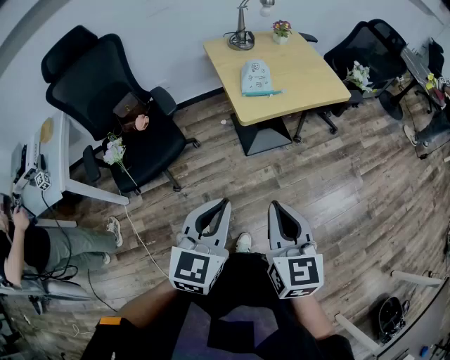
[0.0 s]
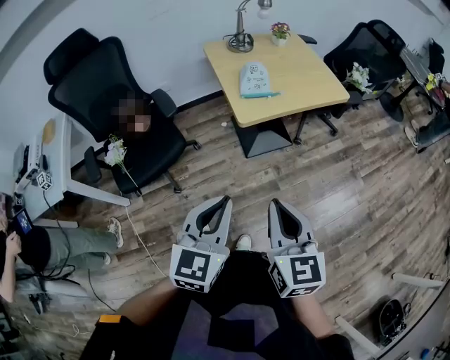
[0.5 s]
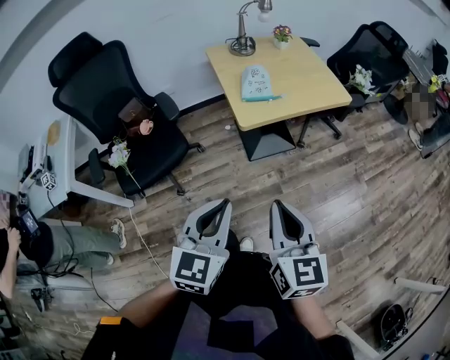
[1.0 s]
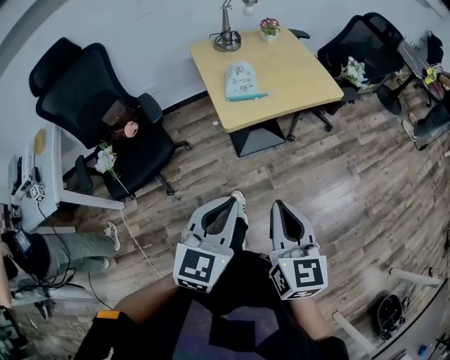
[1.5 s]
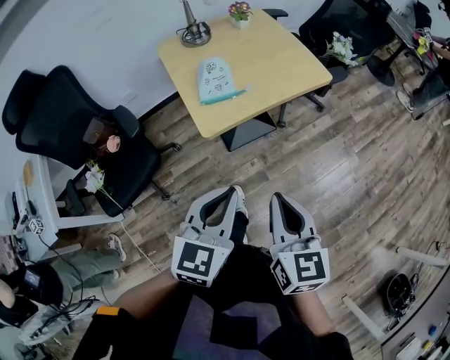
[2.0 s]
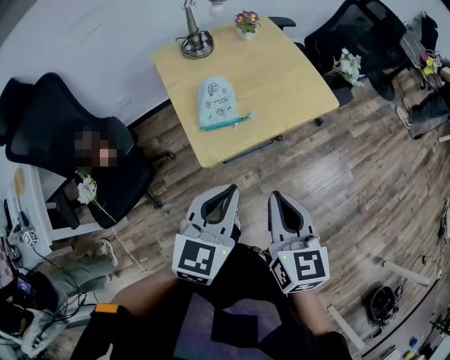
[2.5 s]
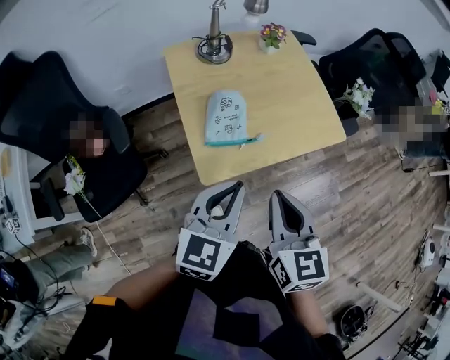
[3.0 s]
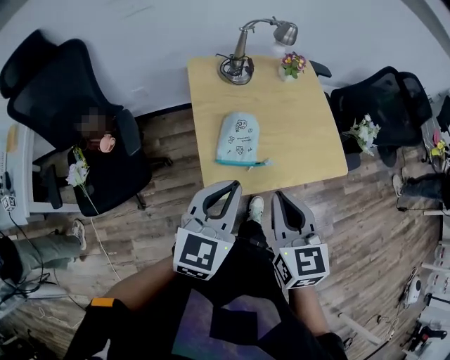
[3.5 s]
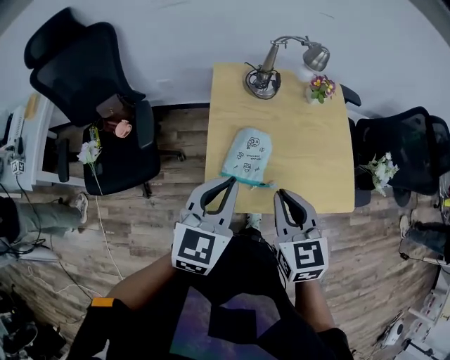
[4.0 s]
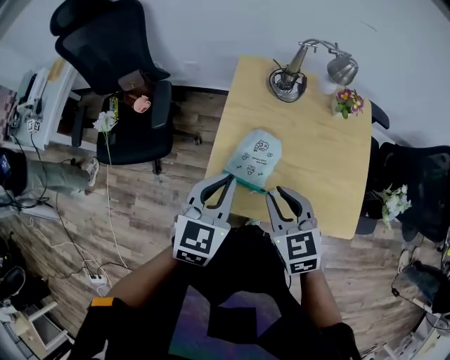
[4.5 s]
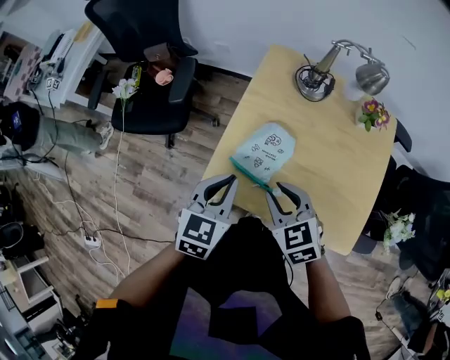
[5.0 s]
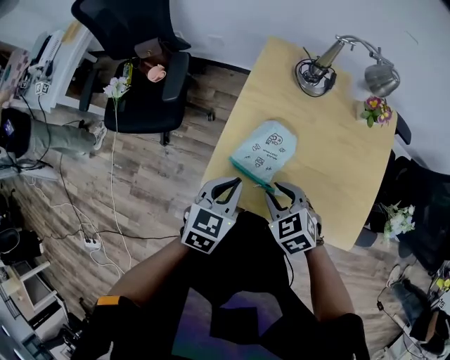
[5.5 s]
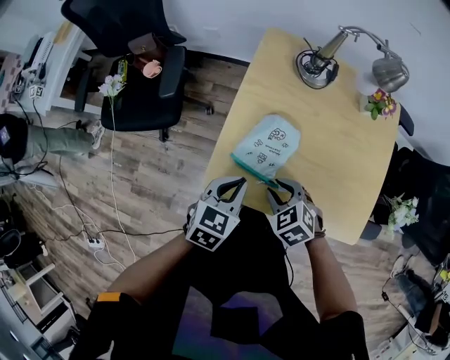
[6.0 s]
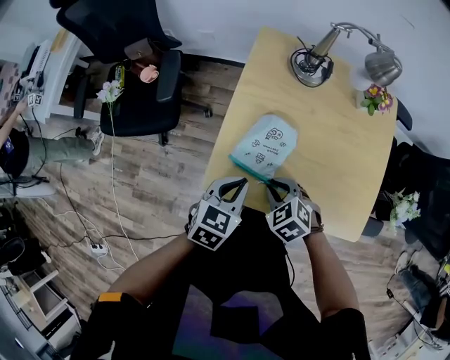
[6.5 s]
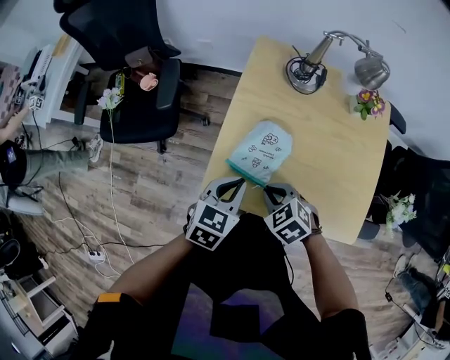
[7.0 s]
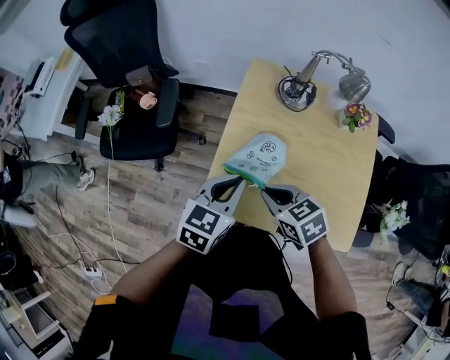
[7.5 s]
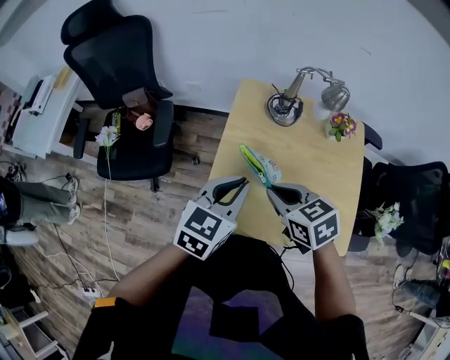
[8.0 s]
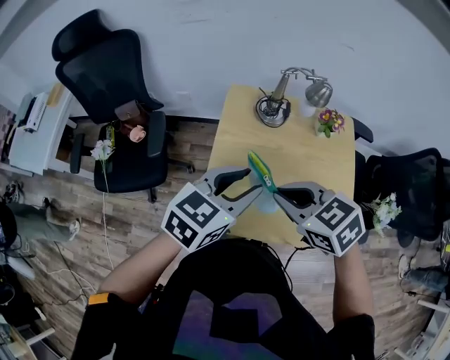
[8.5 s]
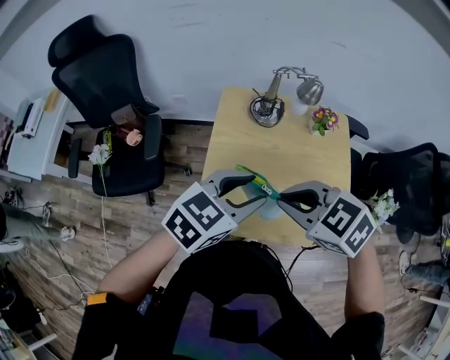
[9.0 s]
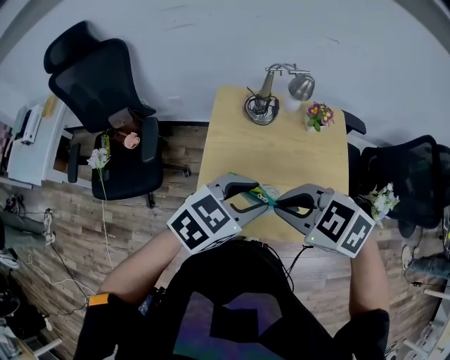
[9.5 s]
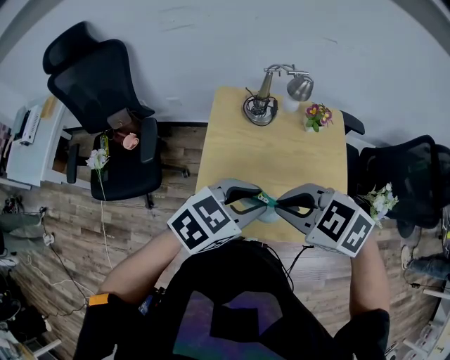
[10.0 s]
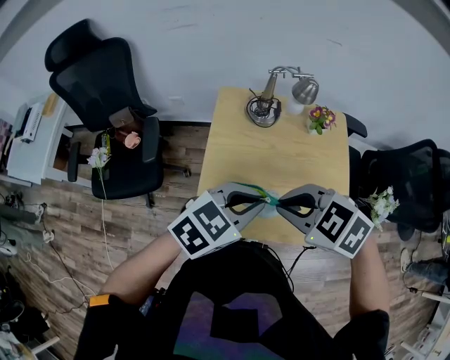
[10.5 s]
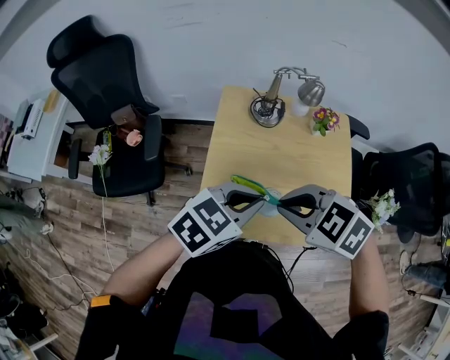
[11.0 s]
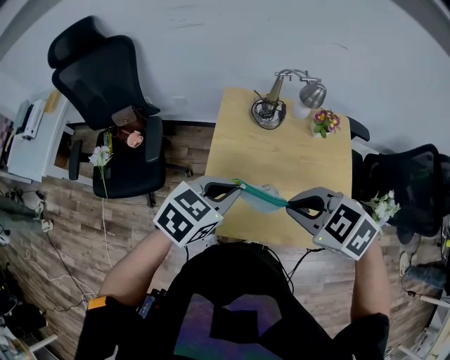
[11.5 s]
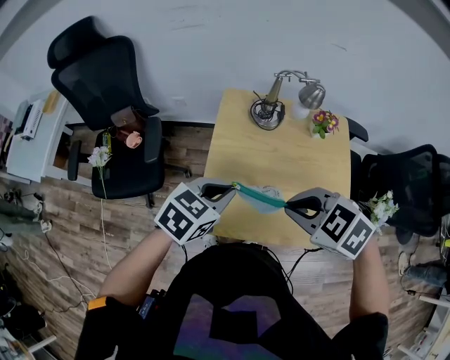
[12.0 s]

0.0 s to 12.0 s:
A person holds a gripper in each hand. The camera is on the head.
0.0 to 2.0 s: The grippers both shift forward and to the right by some 15 cm.
2.0 to 4.0 s: The left gripper shifts by roughly 30 cm, and swivels about 30 degrees, while the right gripper changes place by approximately 35 cm, and swivels approximately 40 degrees.
4.0 to 6.0 s: Both grippers travel together downward, roughly 20 cm. The right gripper points its fingers about 30 degrees further downward, and opens its fingers. Meanwhile the left gripper turns by about 30 degrees.
6.0 to 8.0 s: The right gripper heads upward, covering approximately 15 cm, turns by roughly 30 degrees, and closes up, while the left gripper heads upward and forward, covering about 15 cm.
8.0 to 10.0 s: The left gripper shifts by about 10 cm, changes its angle by approximately 30 degrees, and opens its fingers. The right gripper goes approximately 10 cm upward, and swivels about 30 degrees.
10.0 to 12.0 s: The left gripper changes place by roughly 10 cm, and closes.

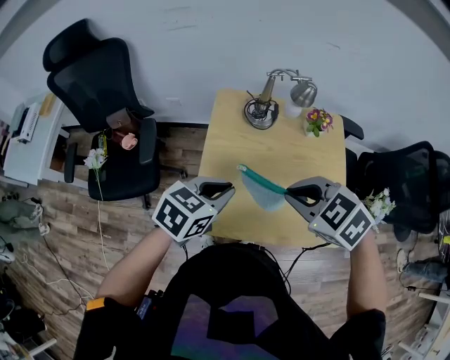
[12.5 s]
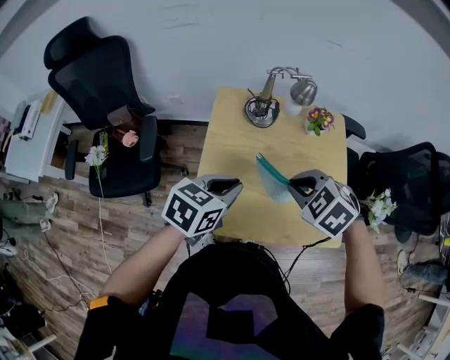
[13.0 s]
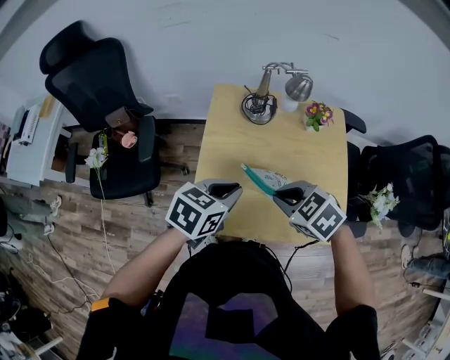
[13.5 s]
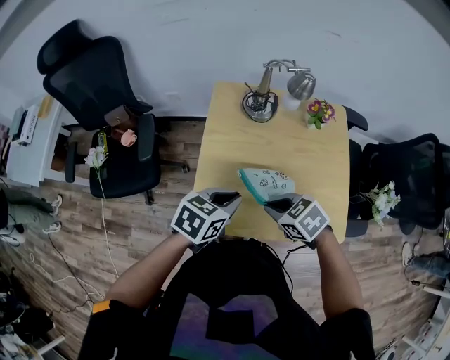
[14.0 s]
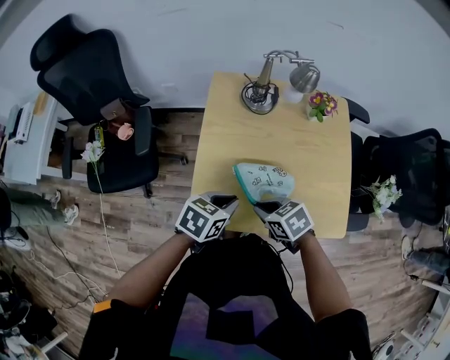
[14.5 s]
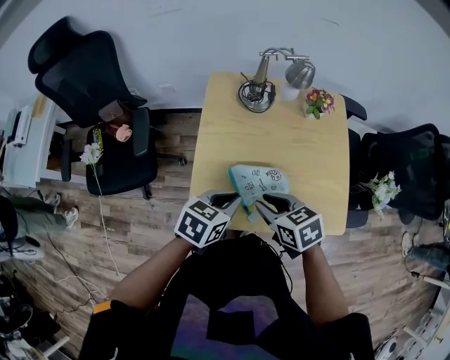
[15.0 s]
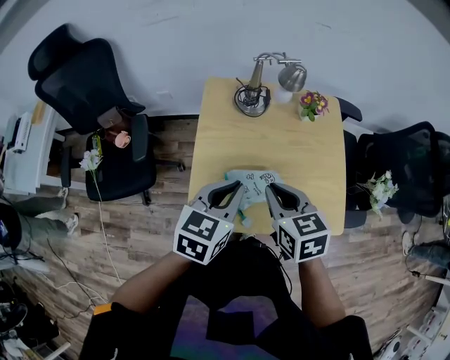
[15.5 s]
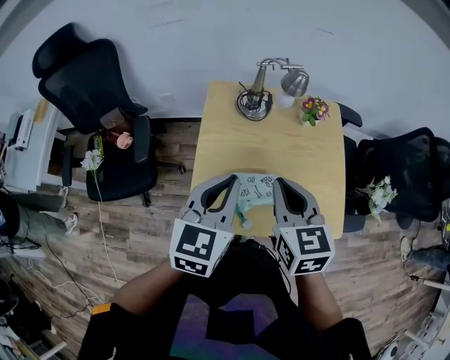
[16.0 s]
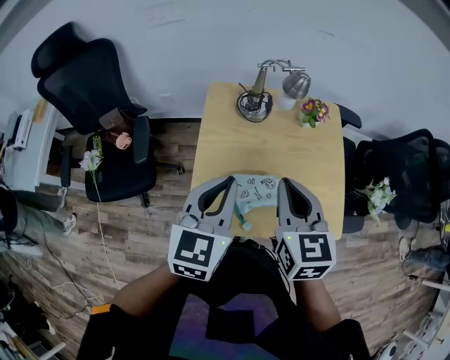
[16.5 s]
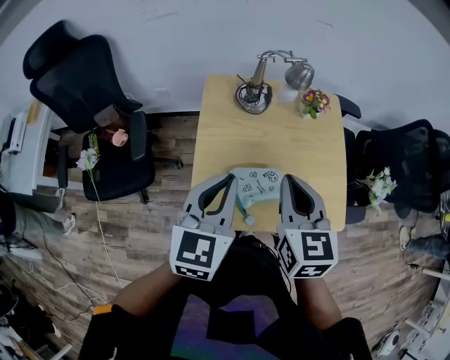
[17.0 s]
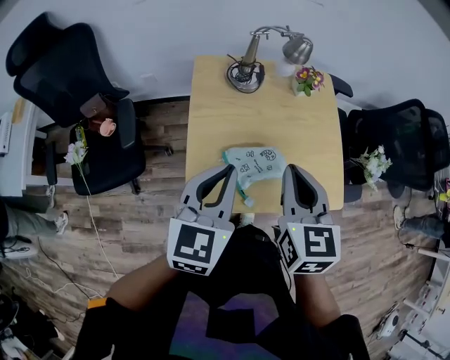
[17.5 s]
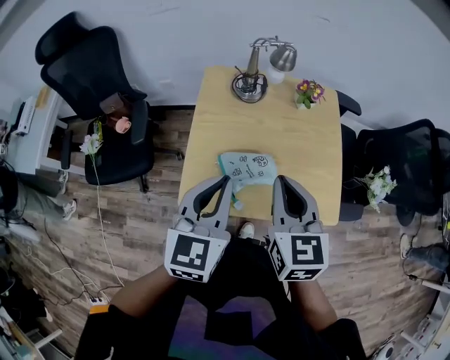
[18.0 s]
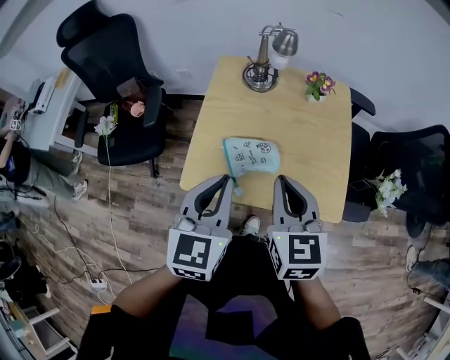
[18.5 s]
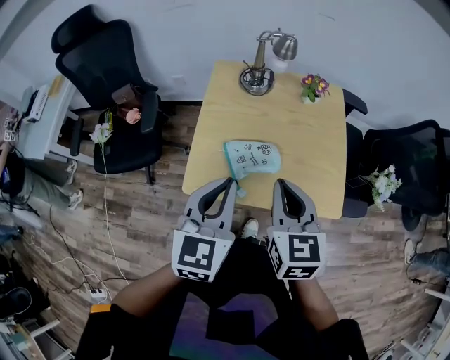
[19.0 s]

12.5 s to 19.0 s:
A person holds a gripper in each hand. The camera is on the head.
12.5 to 14.5 s: The right gripper is displaced downward by about 20 cm, and turns by about 30 degrees; the left gripper moves downward, approximately 10 cm.
14.5 to 17.0 s: The two grippers go about 20 cm upward. The right gripper rotates roughly 60 degrees, and opens and closes again, while the left gripper changes its angle by about 40 degrees.
17.0 to 19.0 s: The left gripper travels backward and to the right by approximately 10 cm. Meanwhile the right gripper shifts some 10 cm backward.

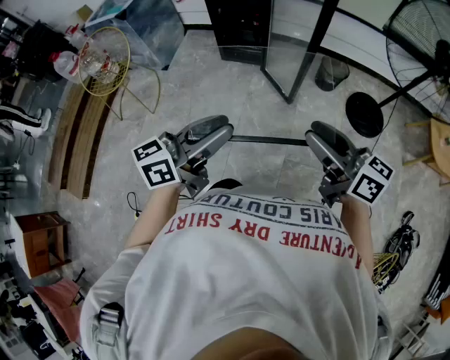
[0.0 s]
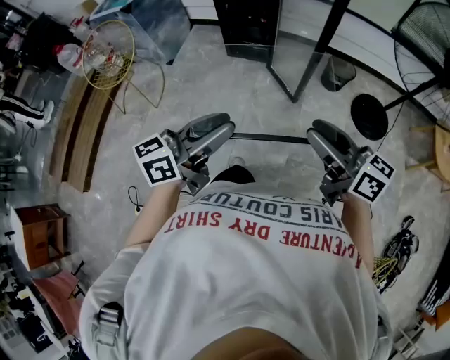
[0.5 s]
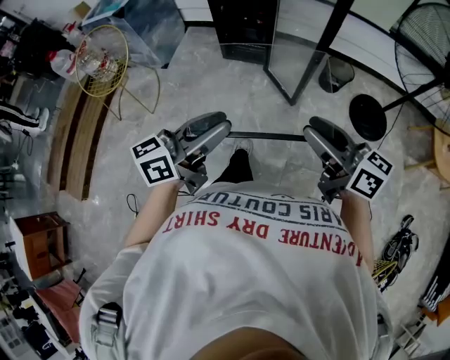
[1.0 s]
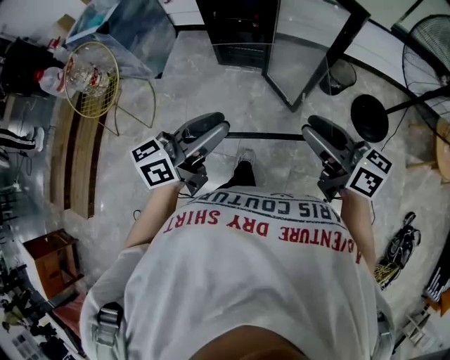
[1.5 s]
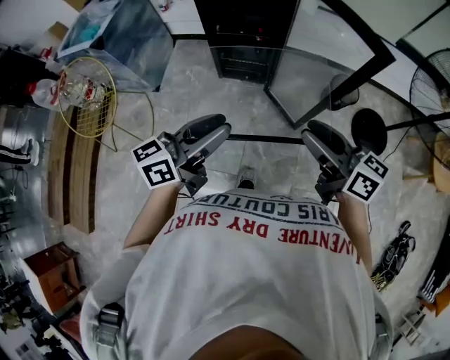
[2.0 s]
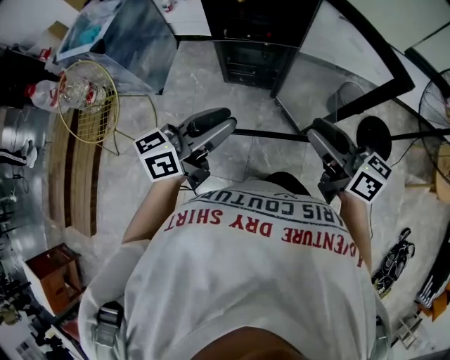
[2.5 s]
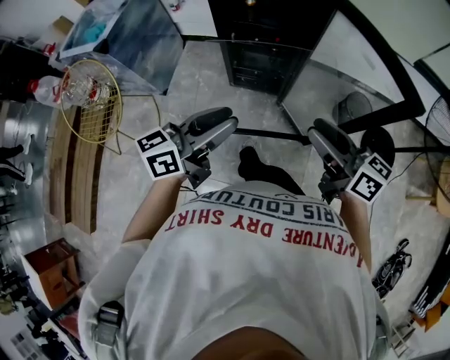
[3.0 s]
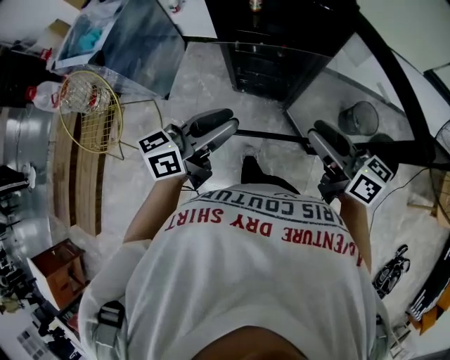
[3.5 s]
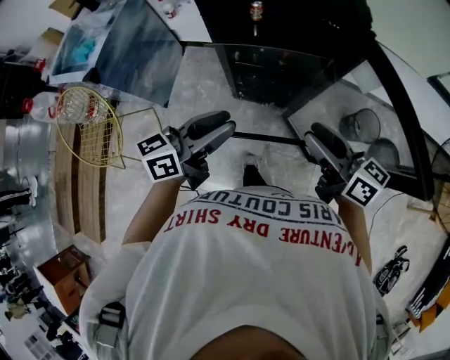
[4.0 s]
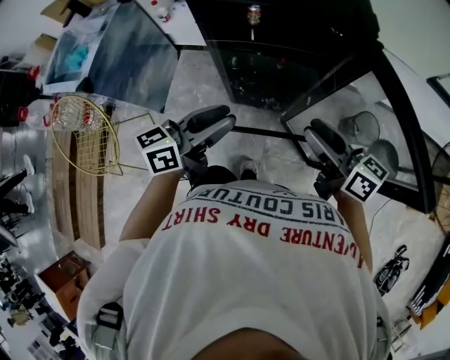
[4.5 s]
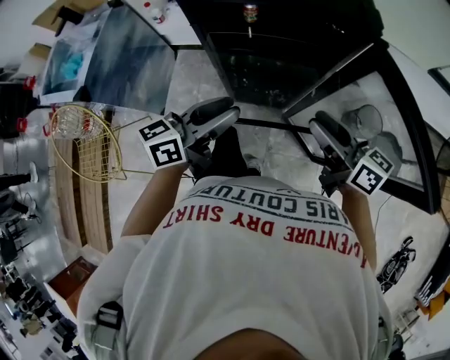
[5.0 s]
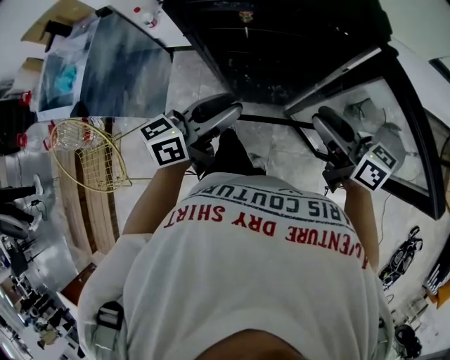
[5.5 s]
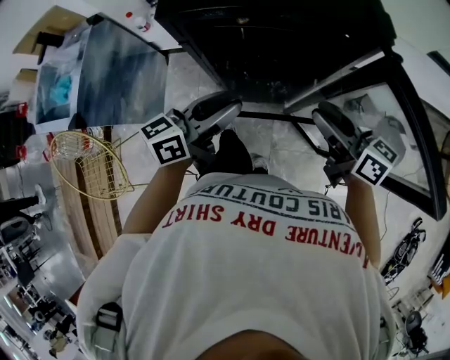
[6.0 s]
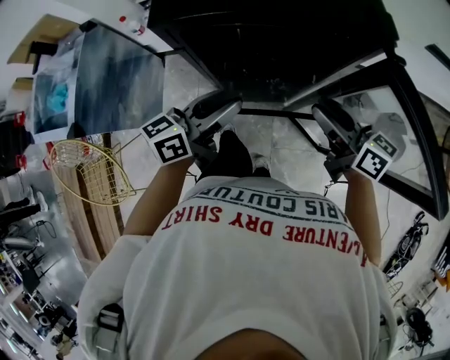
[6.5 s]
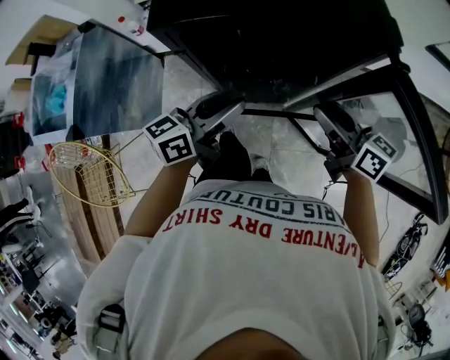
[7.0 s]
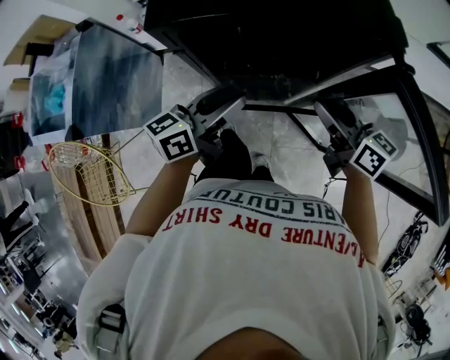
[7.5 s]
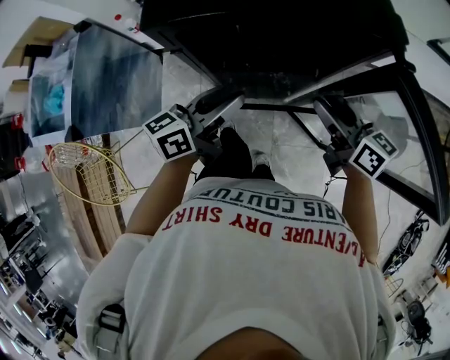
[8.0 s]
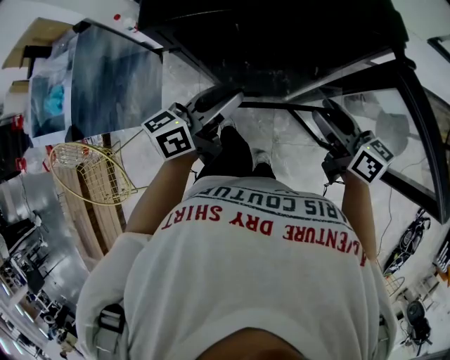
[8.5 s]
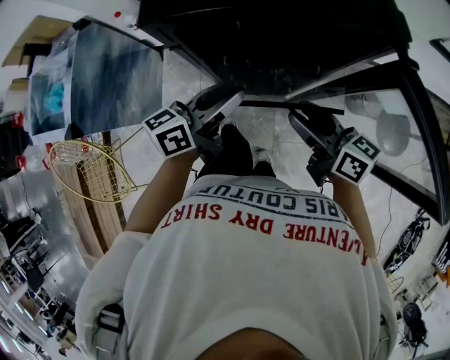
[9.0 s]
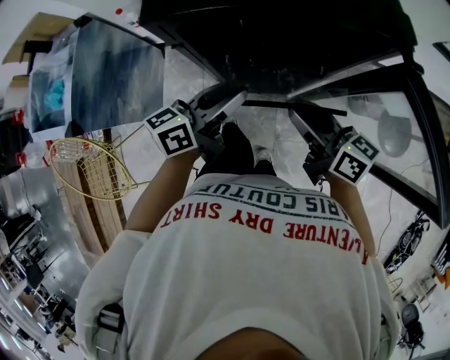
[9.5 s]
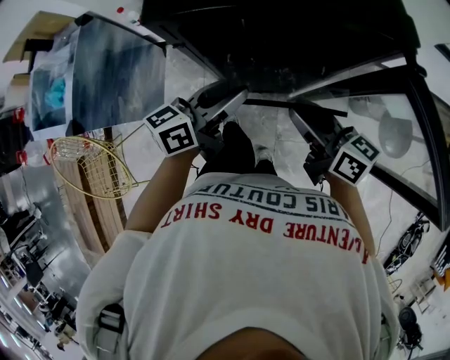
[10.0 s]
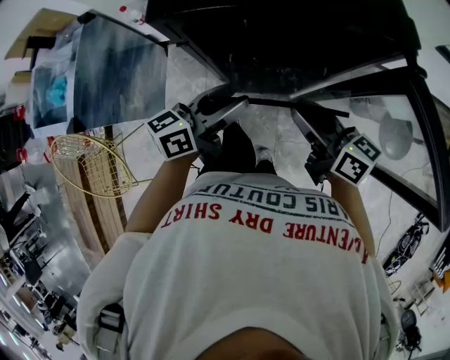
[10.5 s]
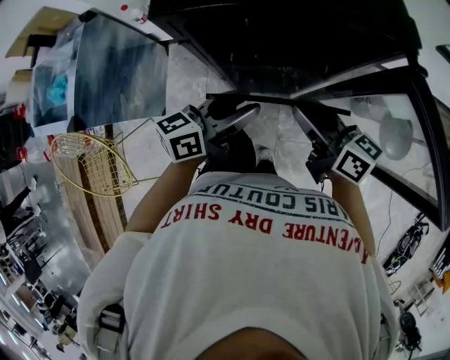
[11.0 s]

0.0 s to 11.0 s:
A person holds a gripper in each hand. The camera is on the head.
0.0 to 2.0 s: Both grippers move forward, approximately 30 cm.
2.0 to 3.5 s: The grippers both shift forward by about 20 cm.
3.5 to 5.5 s: Both grippers travel together forward, some 20 cm.
5.5 to 7.5 s: Both grippers move forward, approximately 5 cm.
7.5 to 9.0 s: The right gripper moves to the left, some 5 cm.
9.0 to 11.0 s: The right gripper closes its fingers.
